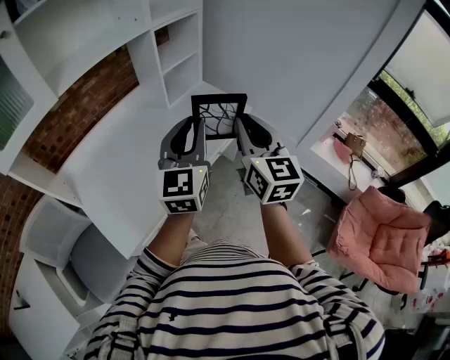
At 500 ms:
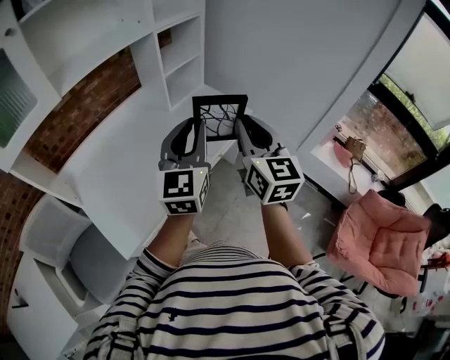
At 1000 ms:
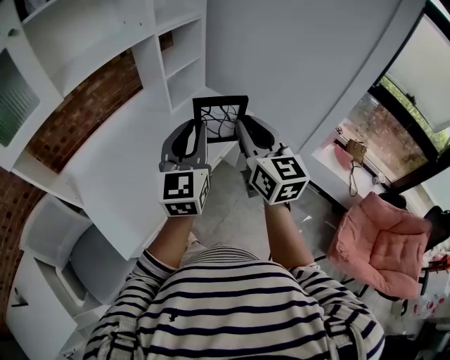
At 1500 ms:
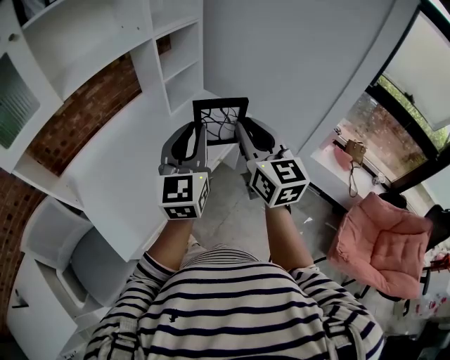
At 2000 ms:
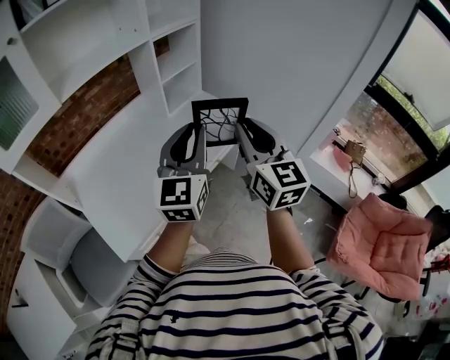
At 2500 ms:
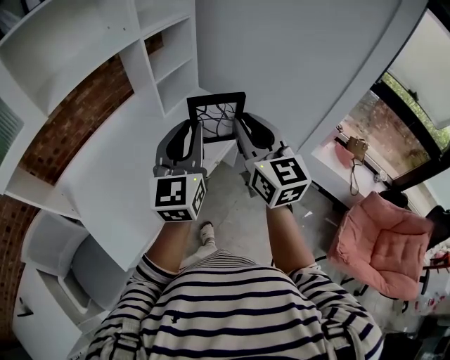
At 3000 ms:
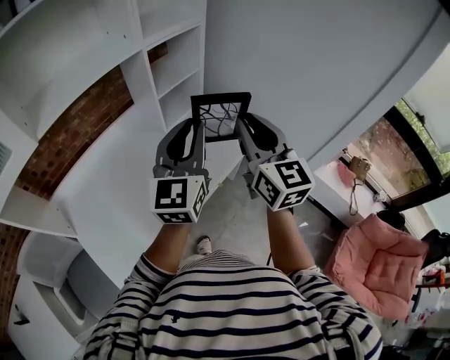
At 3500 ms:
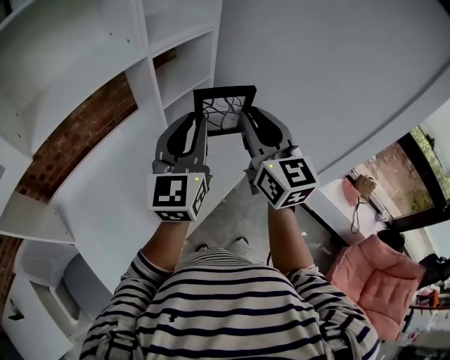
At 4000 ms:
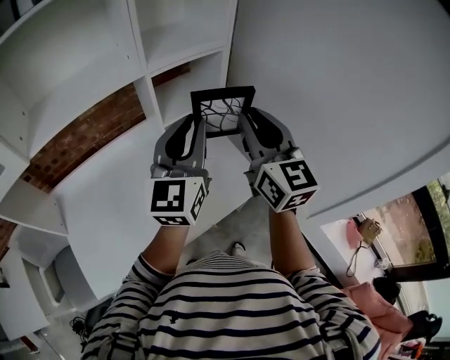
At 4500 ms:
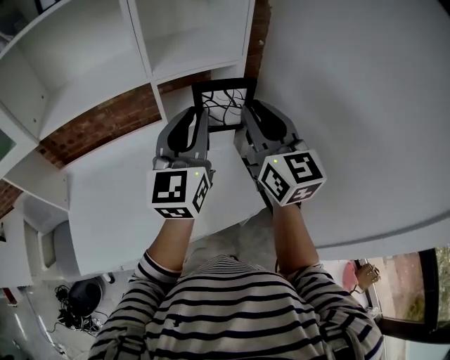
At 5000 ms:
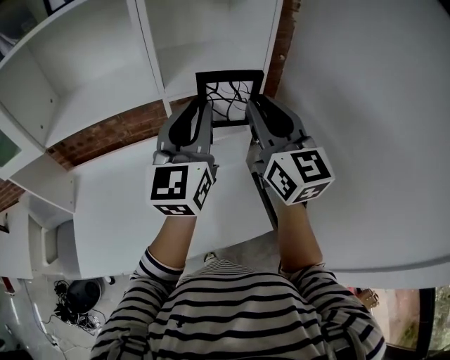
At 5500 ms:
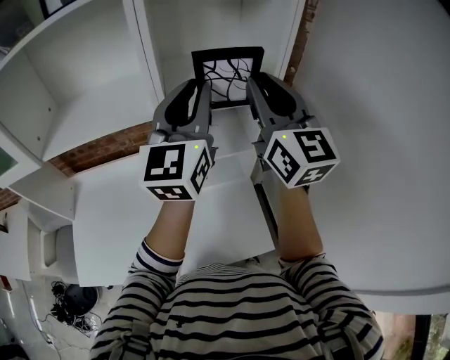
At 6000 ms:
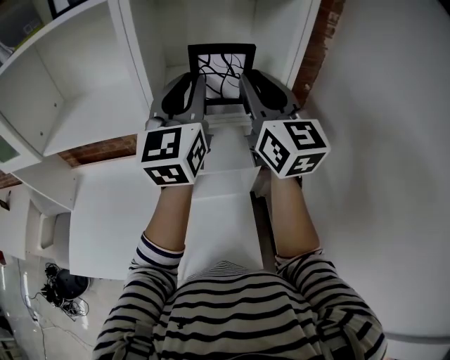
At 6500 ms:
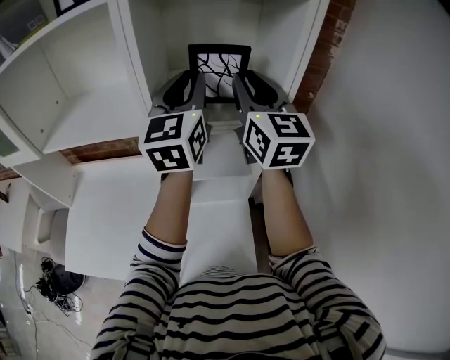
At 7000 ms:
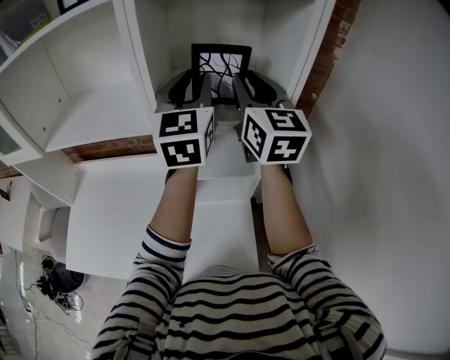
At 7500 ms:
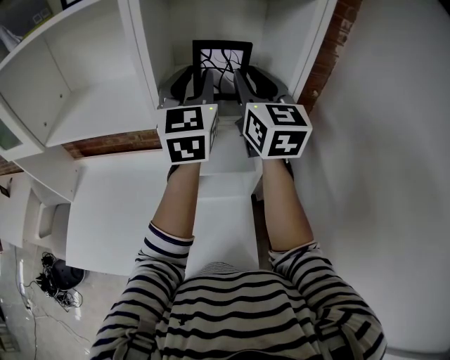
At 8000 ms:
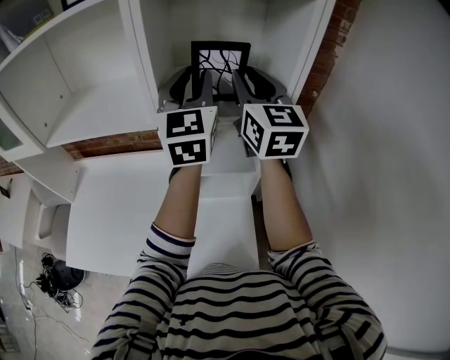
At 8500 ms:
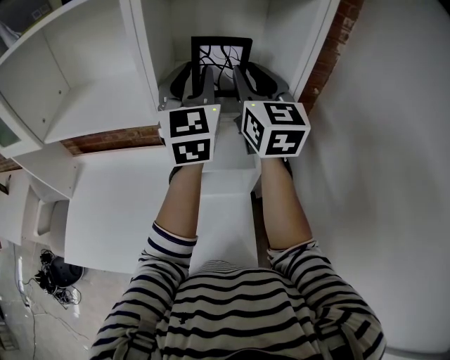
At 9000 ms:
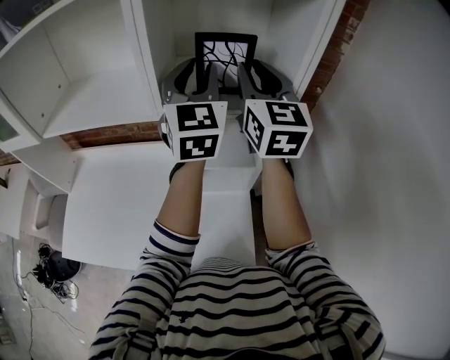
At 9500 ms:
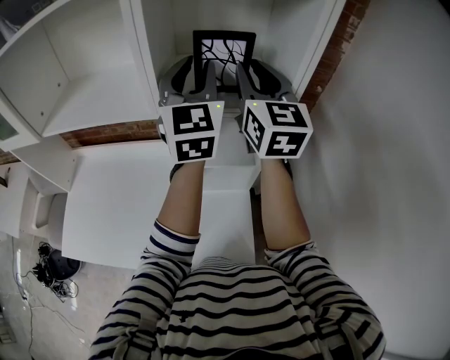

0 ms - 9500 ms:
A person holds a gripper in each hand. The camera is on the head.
0 ms - 2000 ms: The grippers move only a little.
2000 ms - 4000 ms: The left gripper moves forward and backward over approximately 20 cm, changing direction 2 times. The right gripper goes forward and backward, some 25 cm each way, reversing 2 times.
4000 ms - 5500 ms: The two grippers go approximately 25 cm forward and upward. The right gripper turns by approximately 20 degrees. The left gripper changes its angle by about 20 degrees.
5500 ms - 7500 ms: The grippers both shift forward by about 10 cm. The left gripper rotates about 20 degrees.
7500 ms - 9500 ms: The grippers make only small movements.

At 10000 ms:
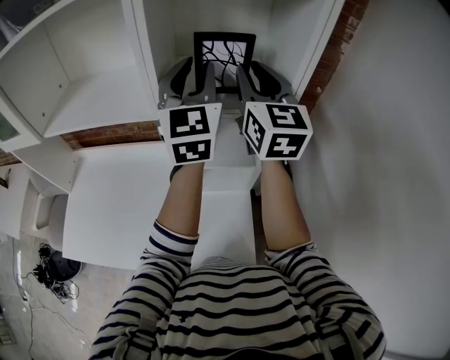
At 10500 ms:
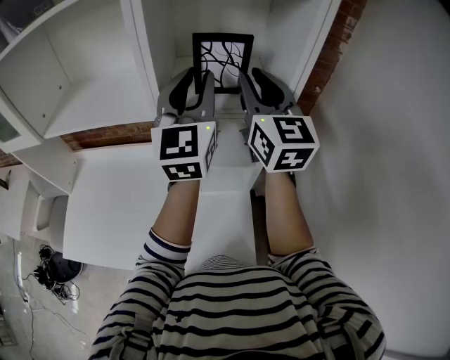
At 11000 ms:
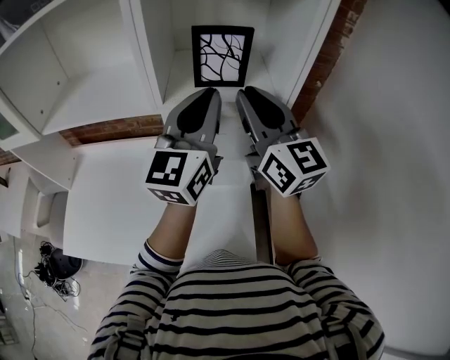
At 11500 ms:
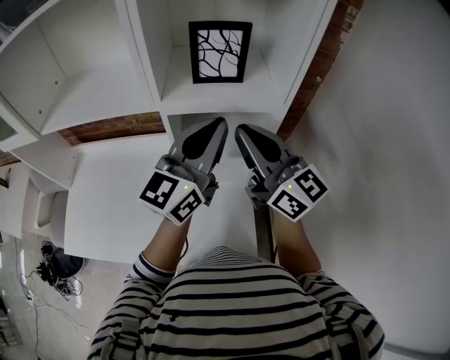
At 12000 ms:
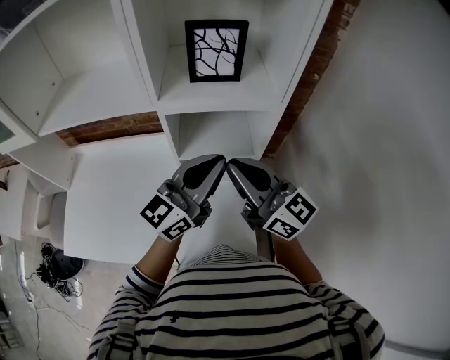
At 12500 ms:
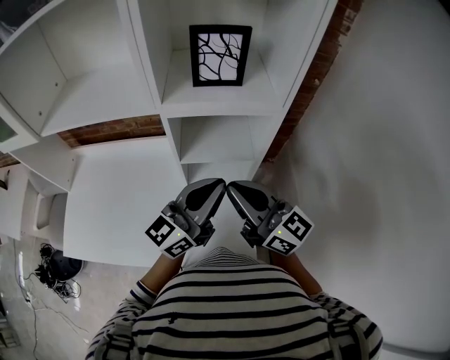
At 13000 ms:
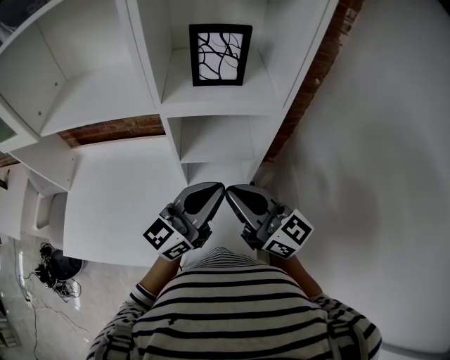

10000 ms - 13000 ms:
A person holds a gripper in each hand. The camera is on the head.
10000 ms - 11500 ms: Both grippers travel together backward and downward, about 15 cm. The left gripper turns by about 40 degrees, and closes up, while the right gripper changes its angle by approximately 30 degrees.
11500 ms - 13000 ms: Both grippers travel together downward and backward, about 15 cm.

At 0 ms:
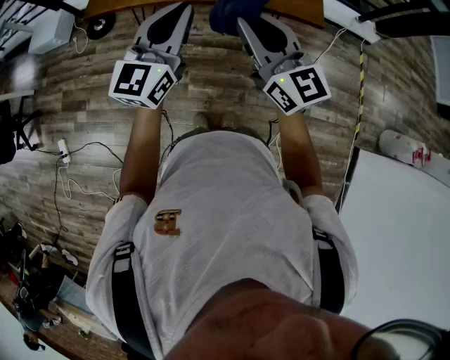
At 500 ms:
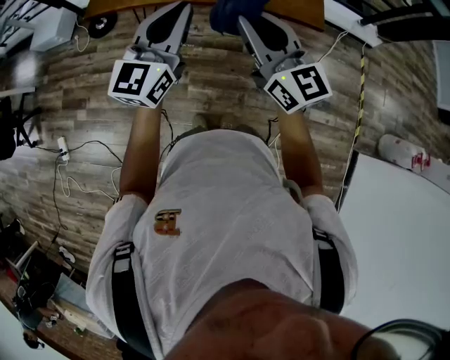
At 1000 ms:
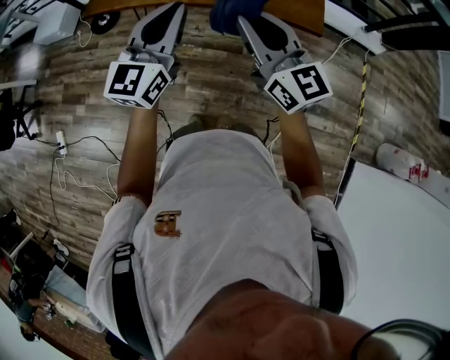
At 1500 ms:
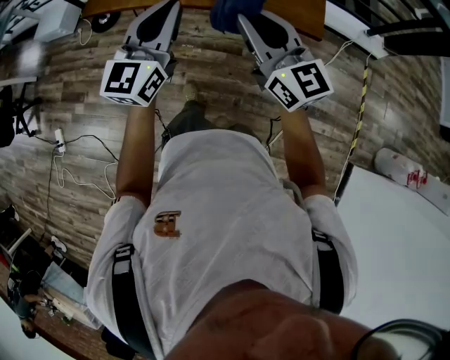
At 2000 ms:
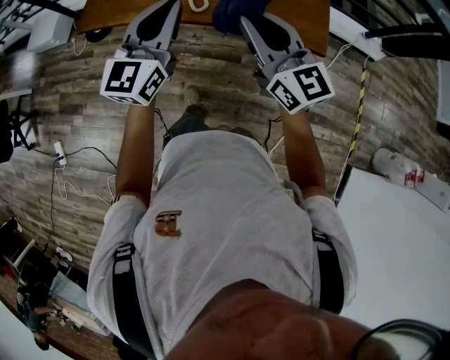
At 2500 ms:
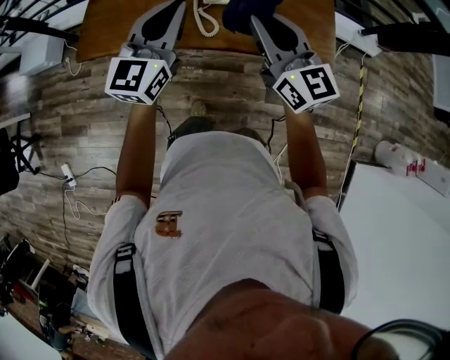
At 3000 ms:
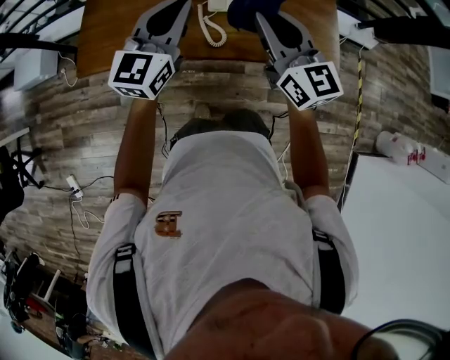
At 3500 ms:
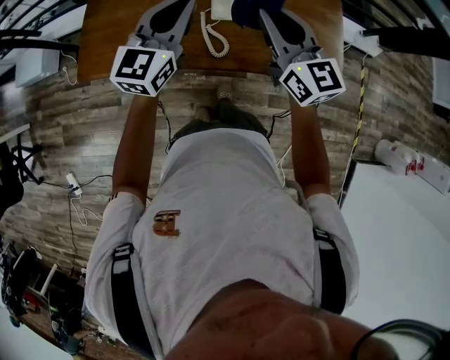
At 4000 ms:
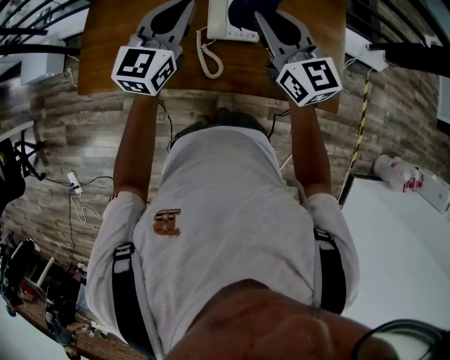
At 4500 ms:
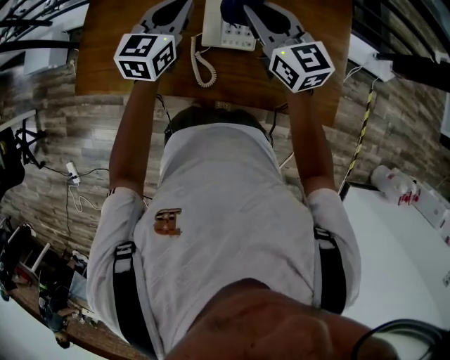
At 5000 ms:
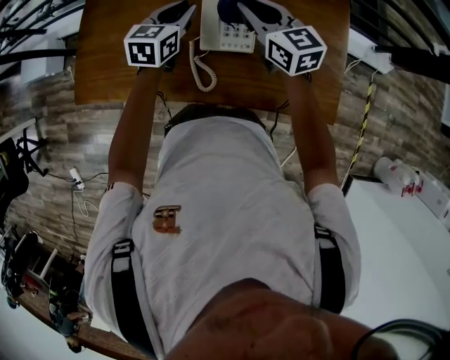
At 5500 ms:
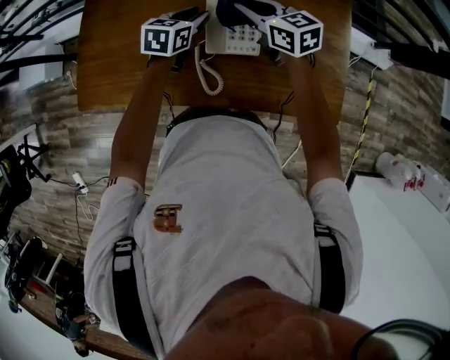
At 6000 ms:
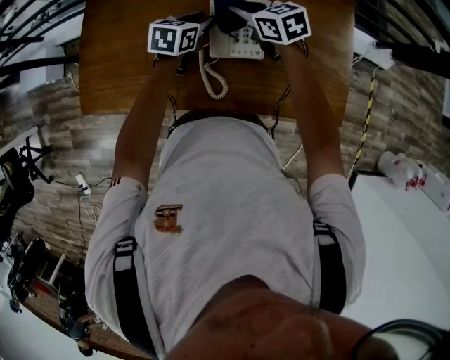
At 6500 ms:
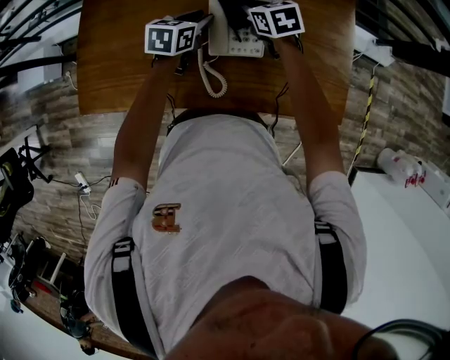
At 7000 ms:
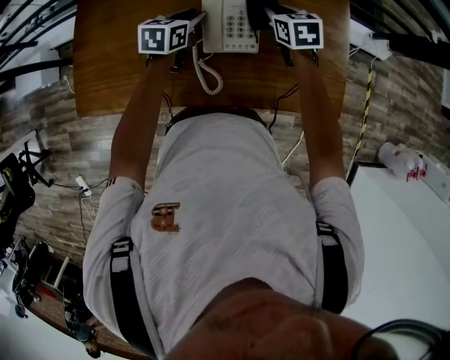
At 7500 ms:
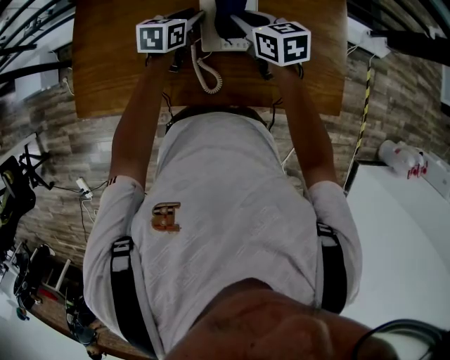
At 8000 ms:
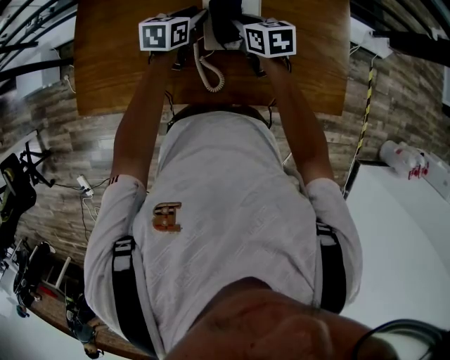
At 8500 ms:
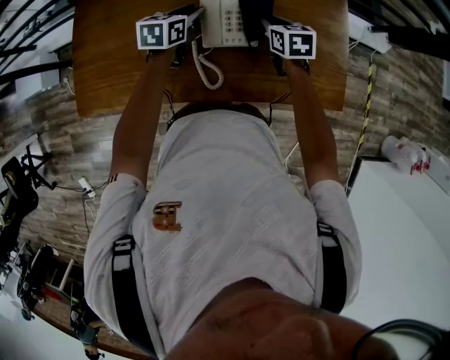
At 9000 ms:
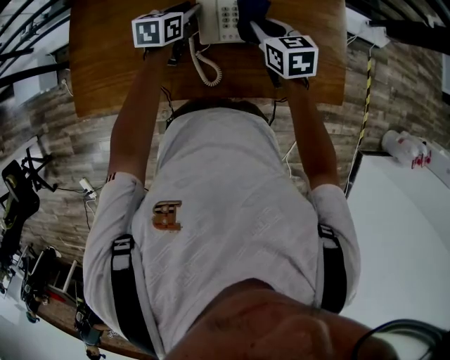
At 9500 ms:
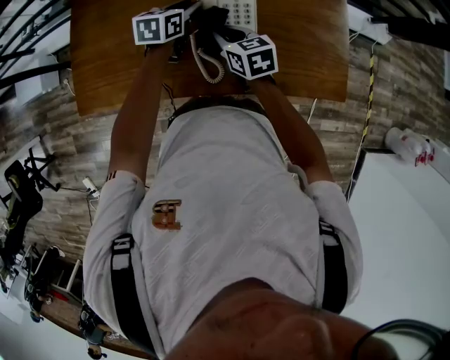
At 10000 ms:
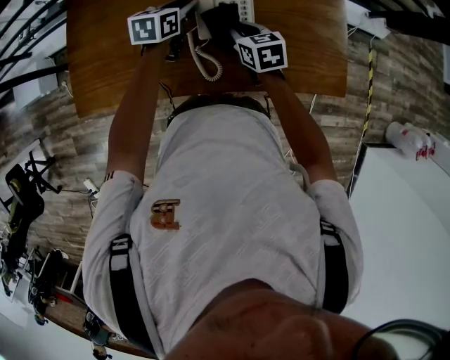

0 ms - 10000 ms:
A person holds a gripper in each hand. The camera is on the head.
0 ms - 2000 ms: Both grippers move forward, about 20 cm.
2000 ms - 4000 ms: Both grippers move forward, some 40 cm.
4000 ms - 6000 ms: The right gripper is displaced forward and downward by some 25 cm, and tilts its fingers roughly 30 degrees downward; the left gripper heads downward and forward, covering some 25 cm, angles its fingers downward, by about 40 degrees, and opens.
6000 ms - 8000 ms: The right gripper goes to the right and returns, some 10 cm each way.
8000 ms - 10000 ms: The right gripper goes left and right, approximately 15 cm each way, reversing 2 times.

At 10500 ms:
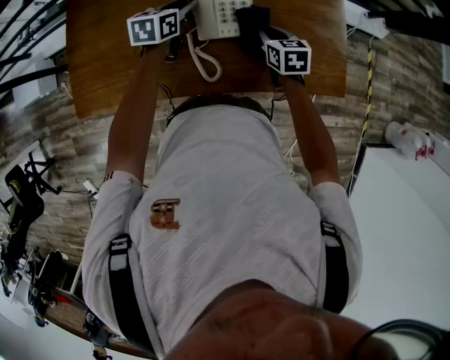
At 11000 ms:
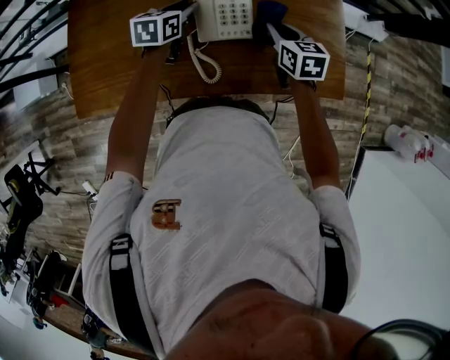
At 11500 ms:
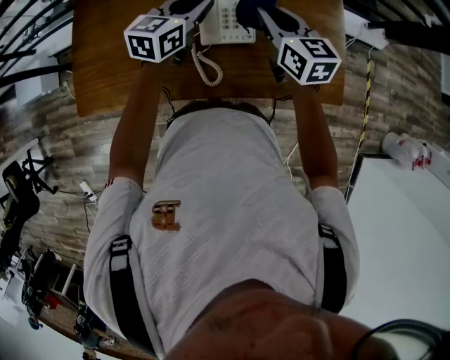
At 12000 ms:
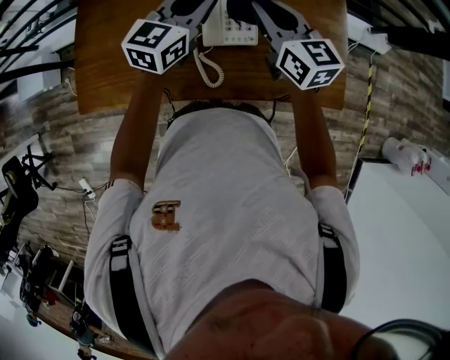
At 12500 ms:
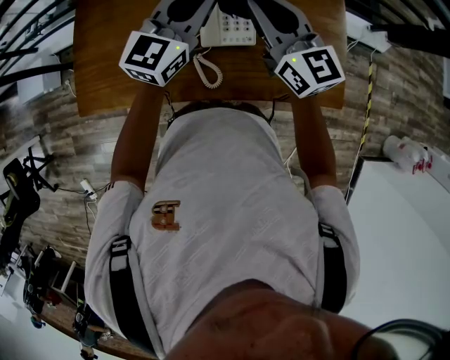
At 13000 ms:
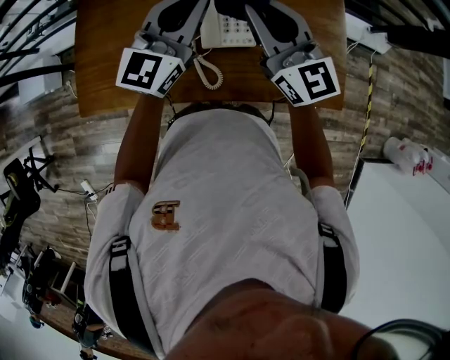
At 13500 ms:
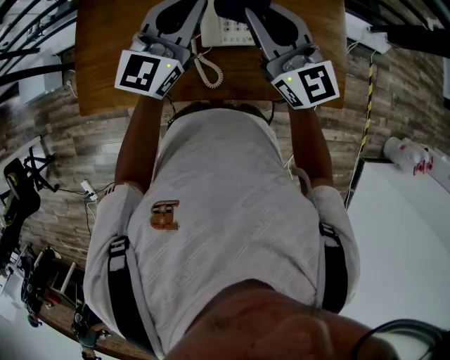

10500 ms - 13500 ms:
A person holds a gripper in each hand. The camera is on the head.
10500 ms - 12000 ms: The two grippers go approximately 20 cm upward. The left gripper turns by roughly 30 degrees, and closes its fingers. Meanwhile the right gripper tips its fingers upward by approximately 30 degrees.
12000 ms - 13500 ms: Both grippers travel together upward, approximately 5 cm. The right gripper changes its angle by roughly 20 degrees.
